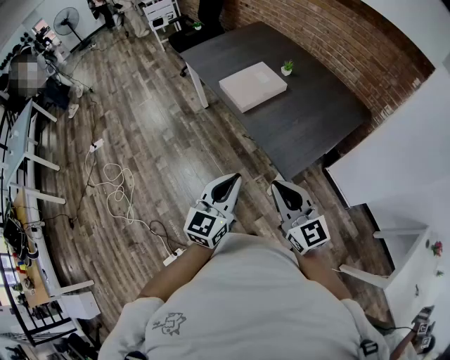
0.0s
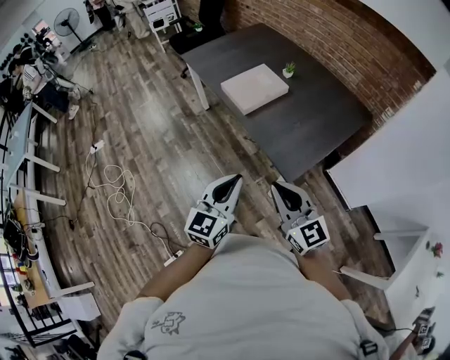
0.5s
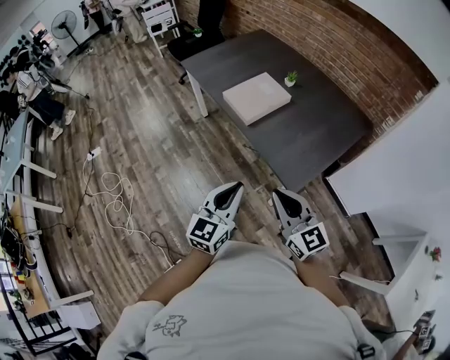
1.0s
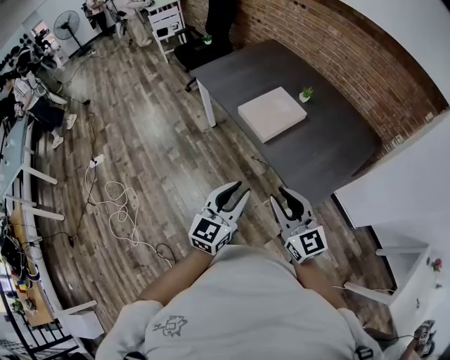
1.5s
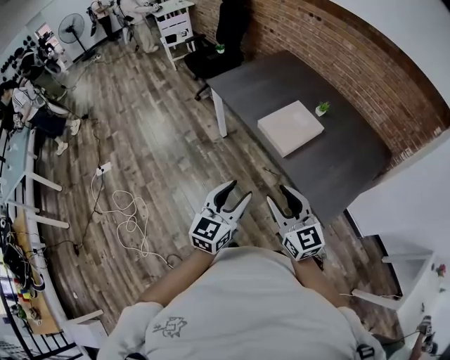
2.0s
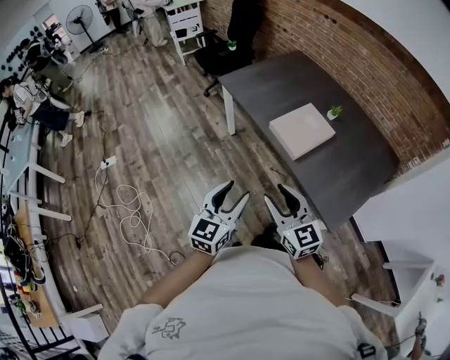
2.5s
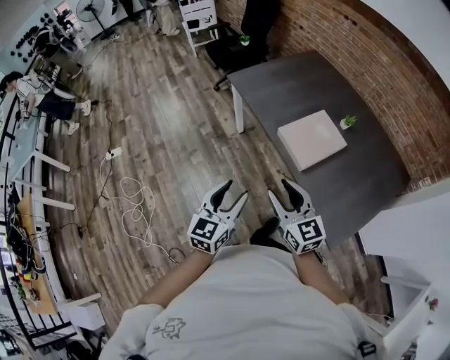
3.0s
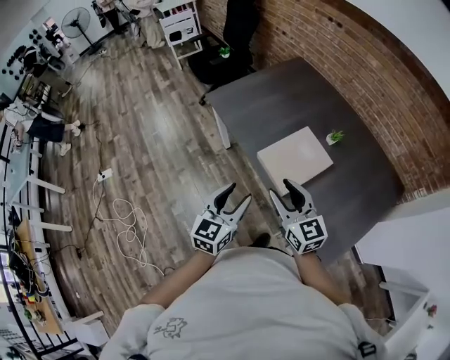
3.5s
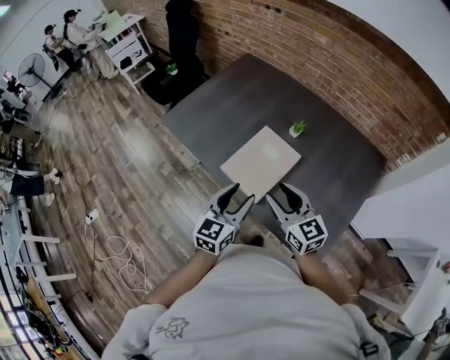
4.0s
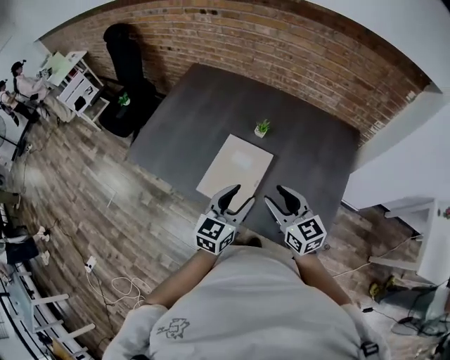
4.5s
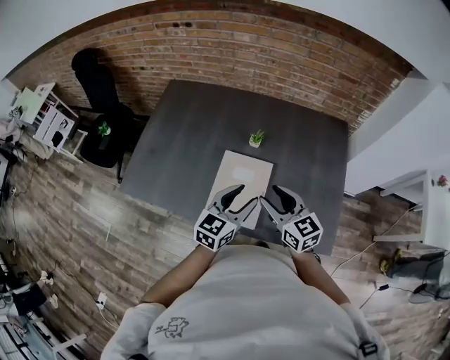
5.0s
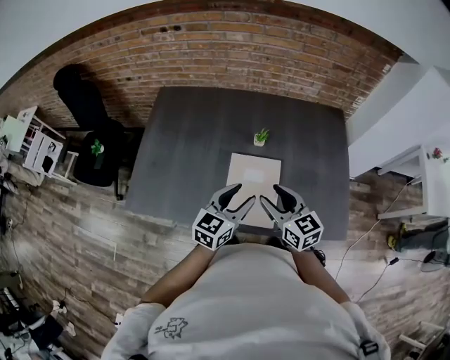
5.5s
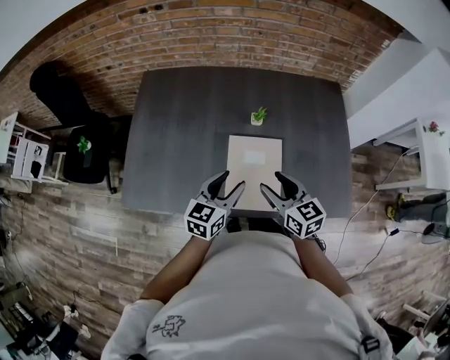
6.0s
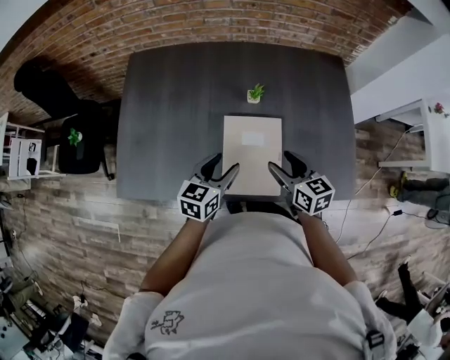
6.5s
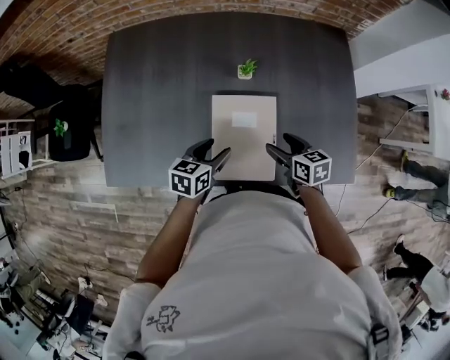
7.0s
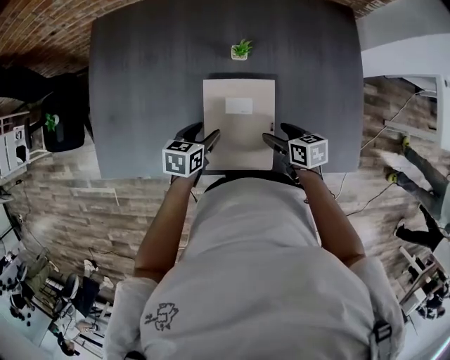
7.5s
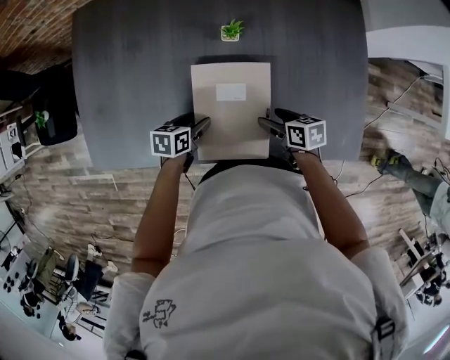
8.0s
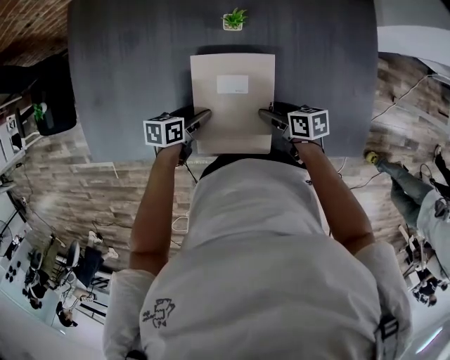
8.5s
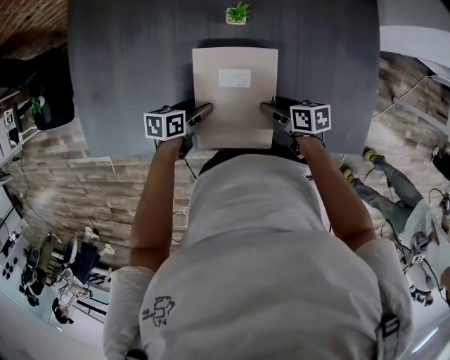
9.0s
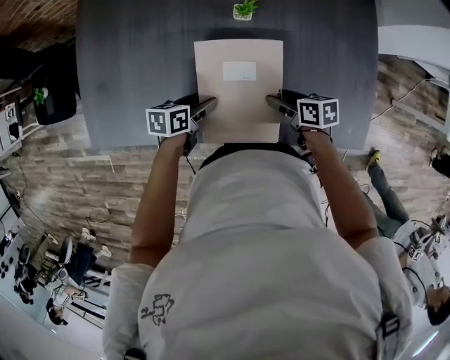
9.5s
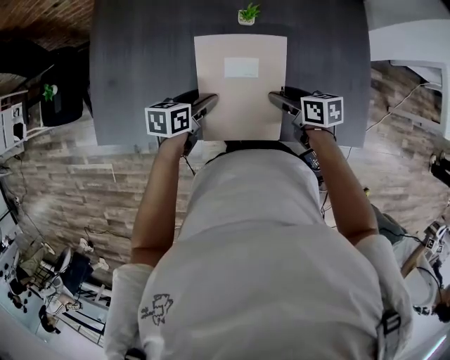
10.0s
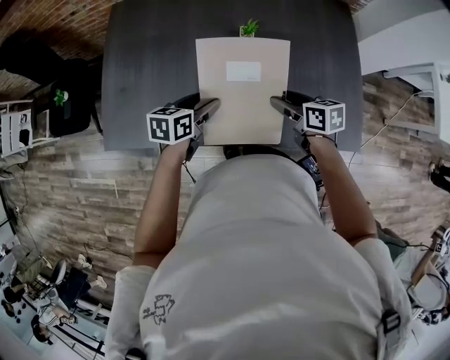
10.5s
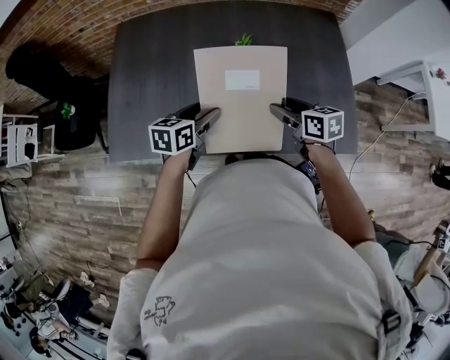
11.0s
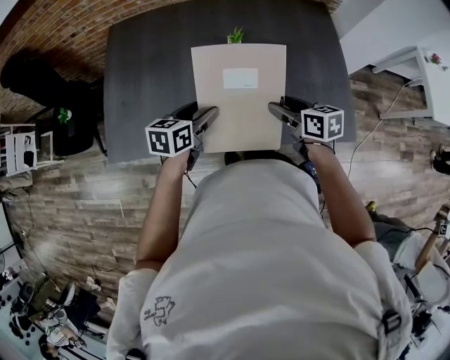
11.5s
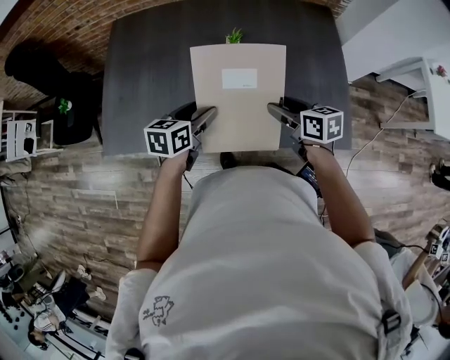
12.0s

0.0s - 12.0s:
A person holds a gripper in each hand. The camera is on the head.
0.0s - 2.0s: The two grippers go some 25 cm to the left and forward. The left gripper opens up, while the right gripper opens up.
2.0s - 4.0s: Both grippers move forward and to the right, about 30 cm.
4.0s - 6.0s: The right gripper moves roughly 15 cm, and swivels roughly 40 degrees; the left gripper ends up roughly 20 cm from where it was, and changes its angle by some 40 degrees.
6.0s - 8.0s: Both grippers travel together downward, approximately 25 cm. The right gripper changes its angle by some 50 degrees, while the left gripper tilts its fingers some 30 degrees downward.
8.0s - 10.0s: The grippers both shift upward by some 10 cm.
10.0s - 12.0s: Both grippers travel together upward, roughly 10 cm.

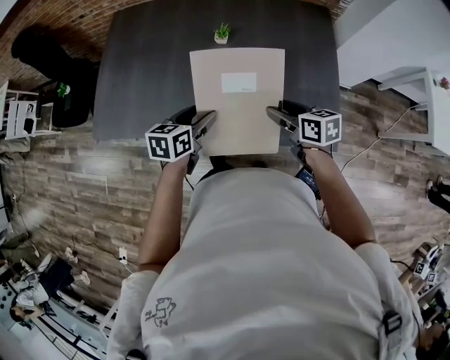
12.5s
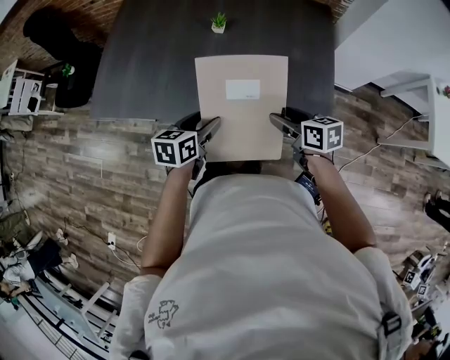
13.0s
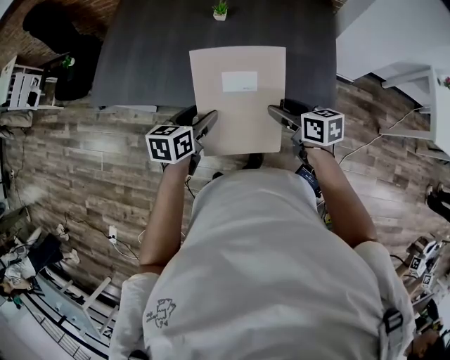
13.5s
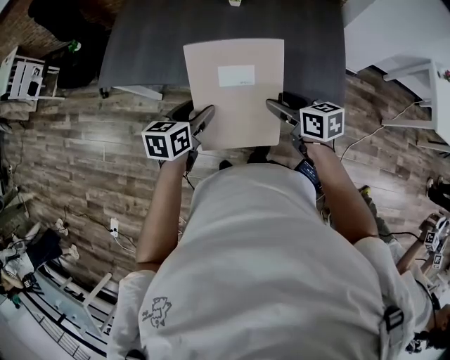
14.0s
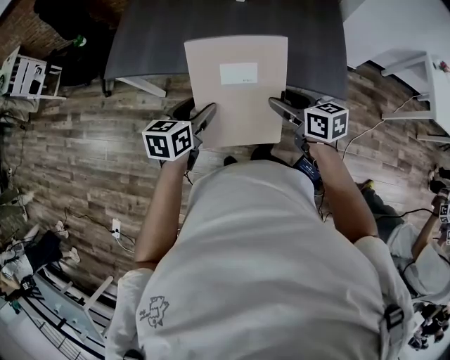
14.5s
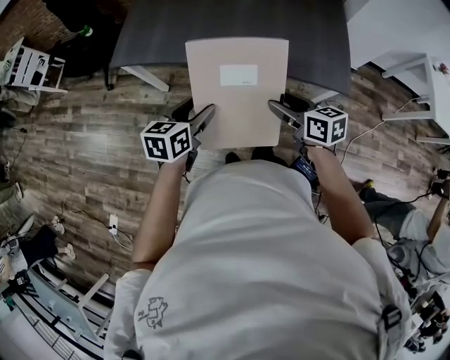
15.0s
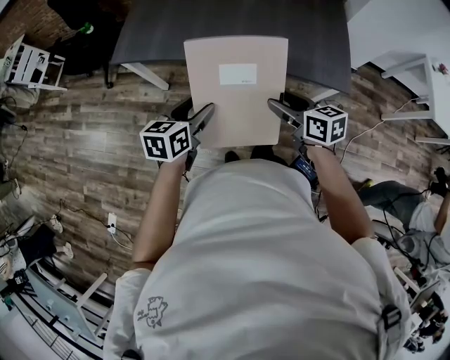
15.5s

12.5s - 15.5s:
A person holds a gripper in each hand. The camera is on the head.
12.5s - 14.0s: The left gripper heads backward, covering about 20 cm. Meanwhile the right gripper shifts some 15 cm backward and to the left.
14.0s - 15.5s: The two grippers go about 15 cm backward and to the left.

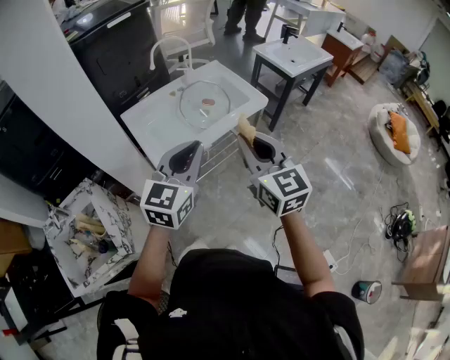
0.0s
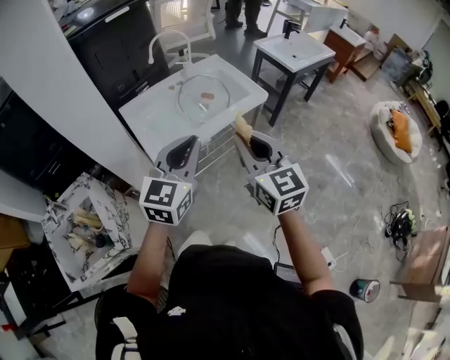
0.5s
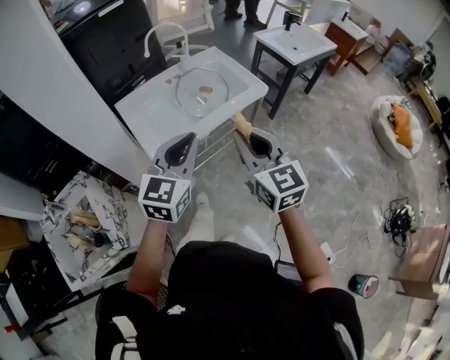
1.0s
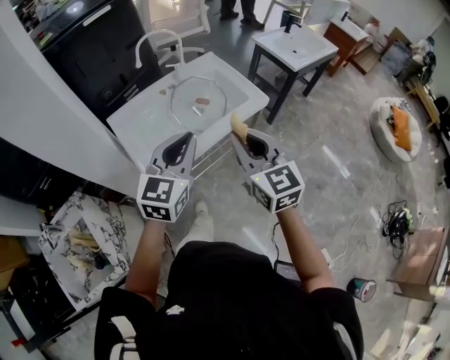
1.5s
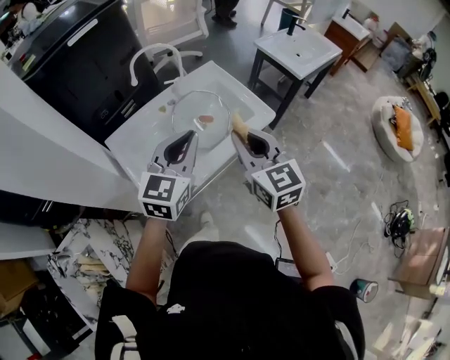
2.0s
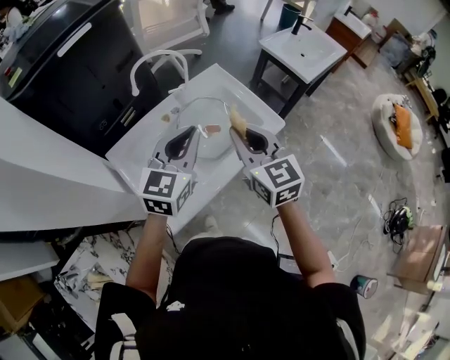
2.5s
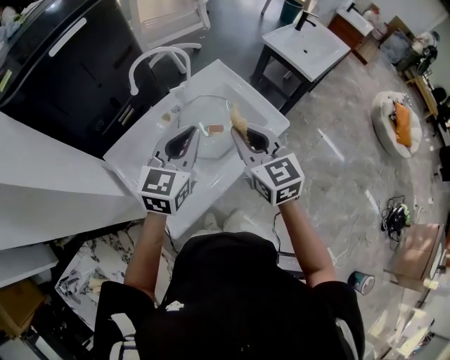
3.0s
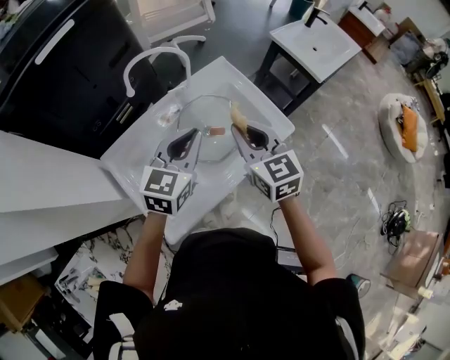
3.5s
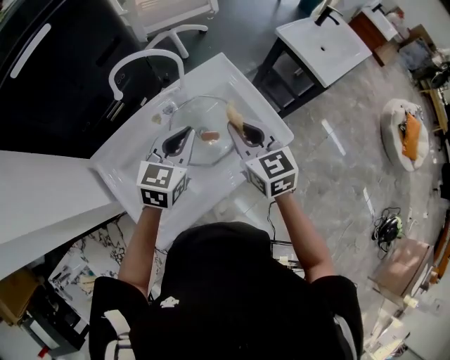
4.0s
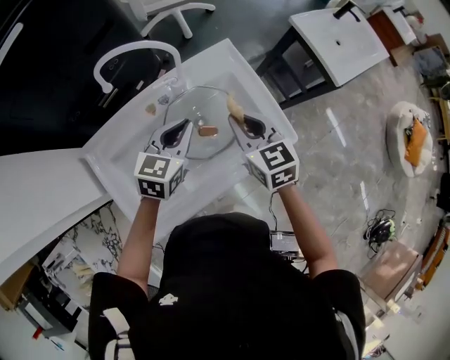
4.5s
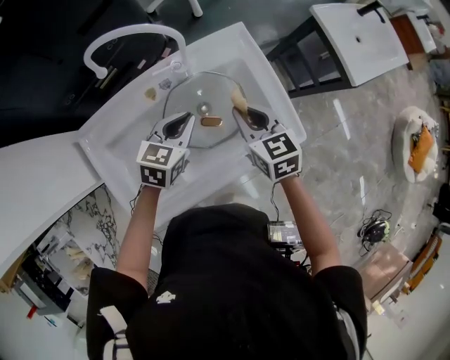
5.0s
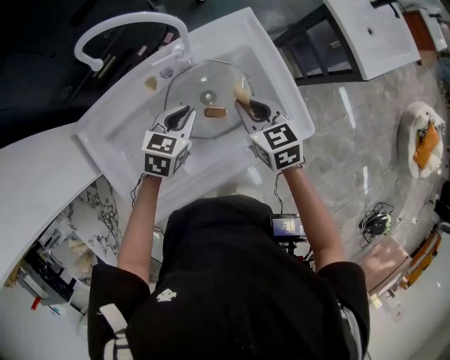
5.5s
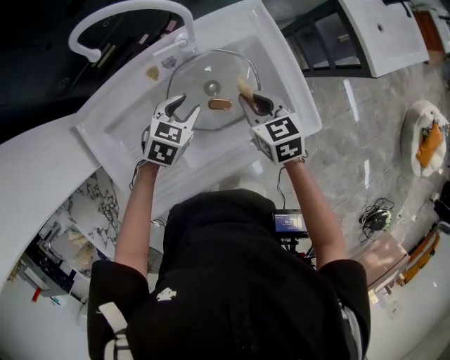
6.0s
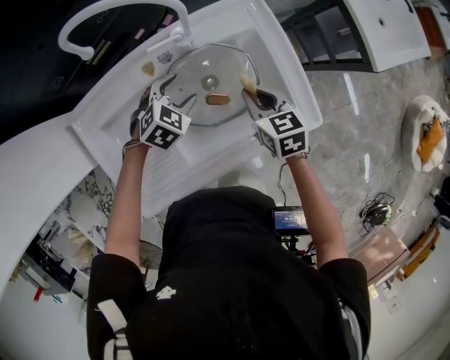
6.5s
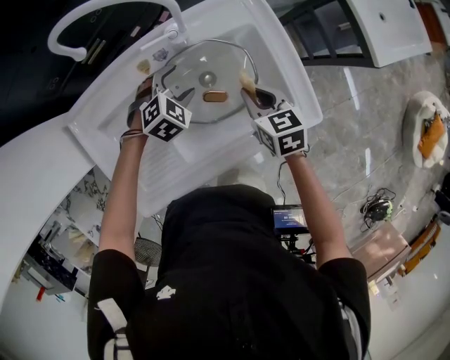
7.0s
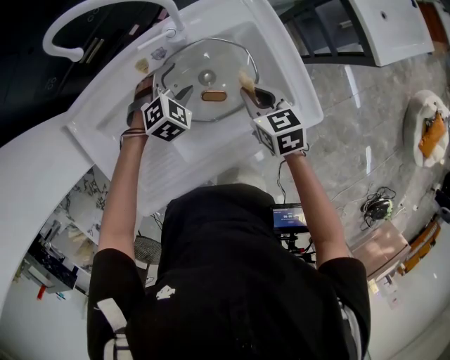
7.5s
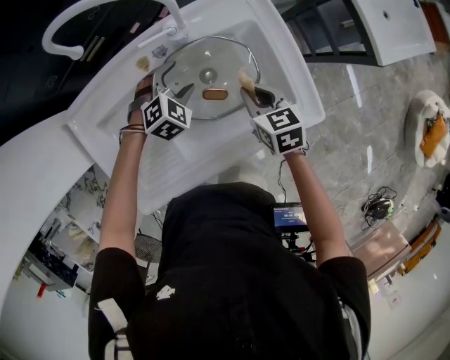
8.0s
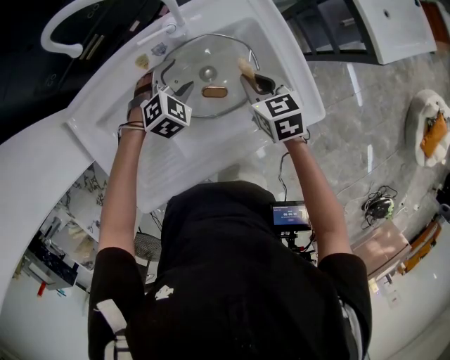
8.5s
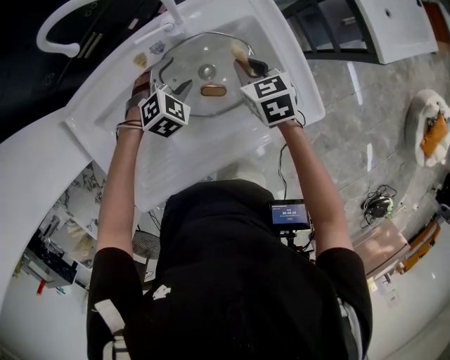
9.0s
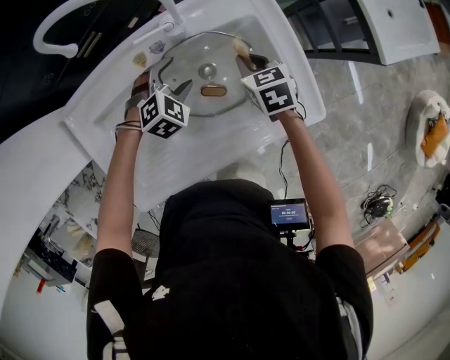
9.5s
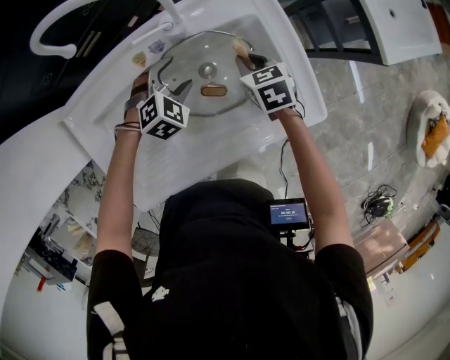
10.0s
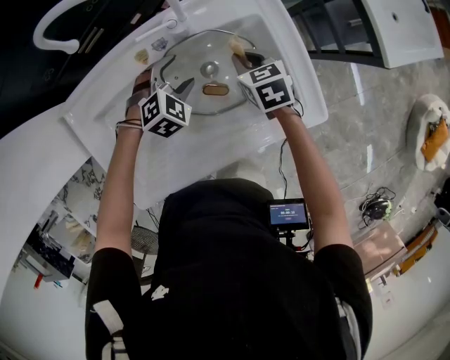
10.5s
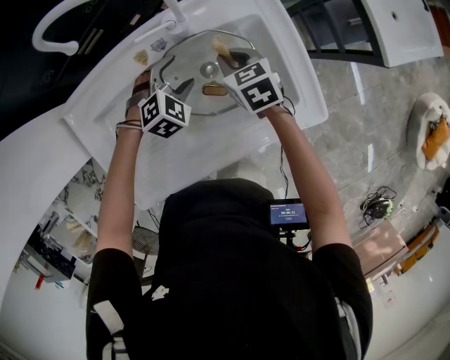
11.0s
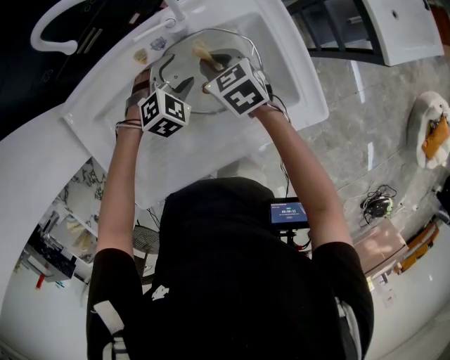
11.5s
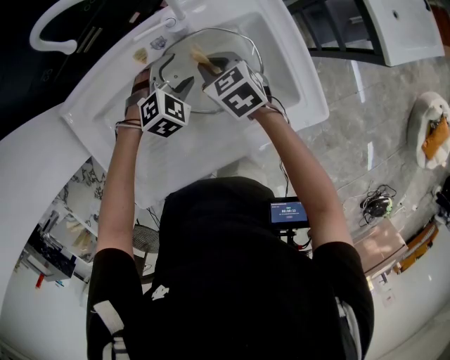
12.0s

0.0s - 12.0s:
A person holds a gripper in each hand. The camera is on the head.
0.0s - 2.0s: The grippers both shift forward by about 25 cm.
2.0s - 4.0s: The grippers both shift forward and downward by roughly 25 cm.
4.0s - 6.0s: The two grippers go some 20 cm downward. The left gripper swivels about 30 degrees, and opens up. Meanwhile the right gripper changes its angle by about 30 degrees.
6.0s - 8.0s: The left gripper shifts by about 5 cm, rotates some 30 degrees, and opens up.
8.0s - 10.0s: The right gripper travels forward by roughly 10 cm.
10.0s - 12.0s: The right gripper shifts some 10 cm to the left.
